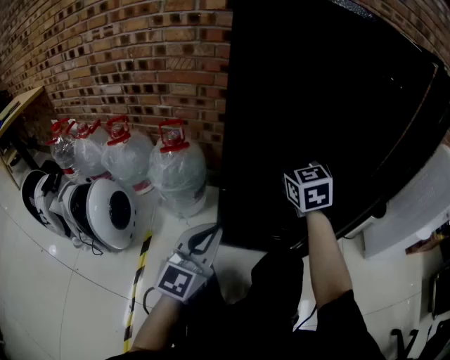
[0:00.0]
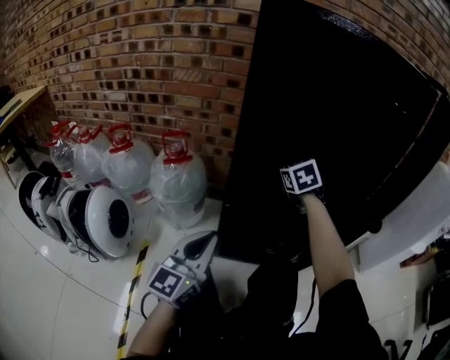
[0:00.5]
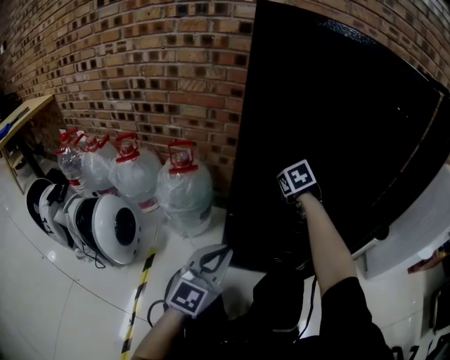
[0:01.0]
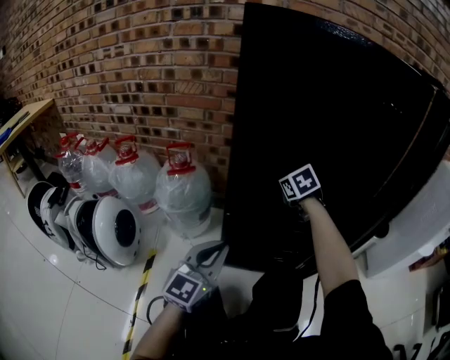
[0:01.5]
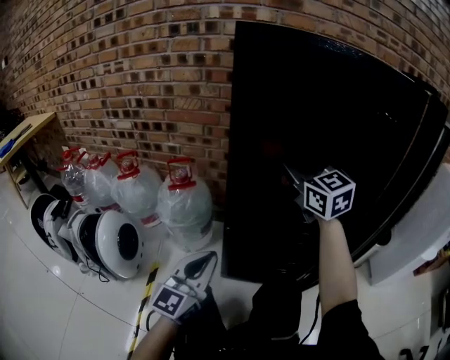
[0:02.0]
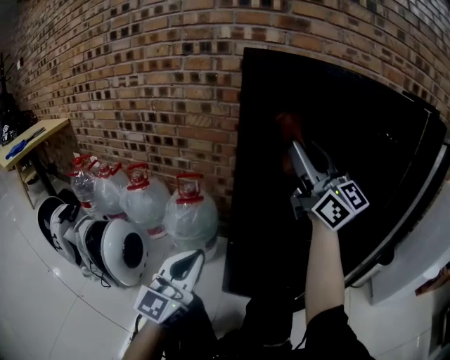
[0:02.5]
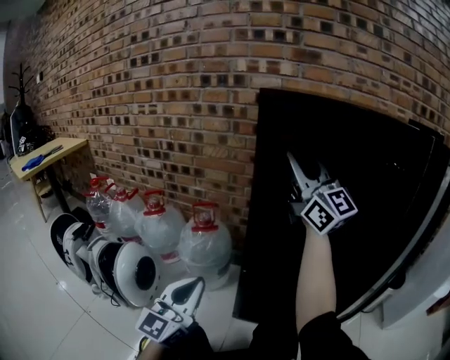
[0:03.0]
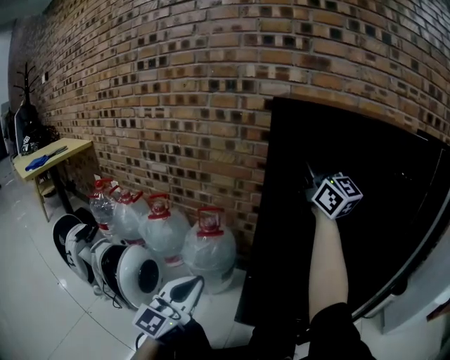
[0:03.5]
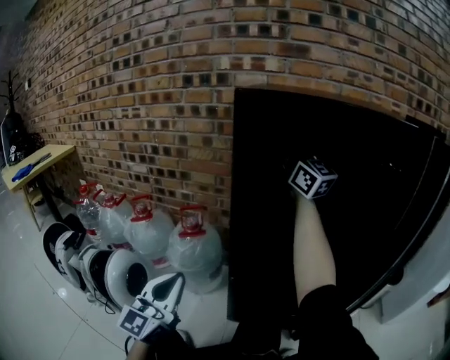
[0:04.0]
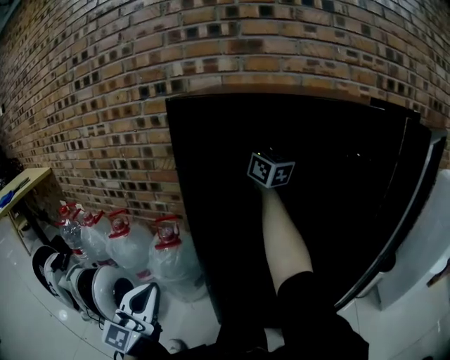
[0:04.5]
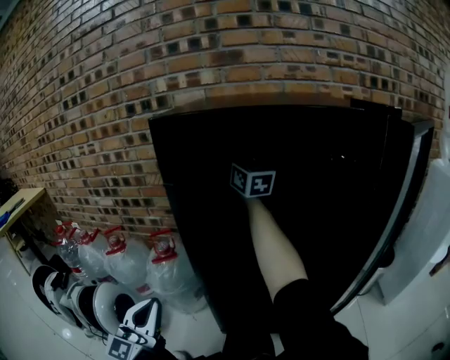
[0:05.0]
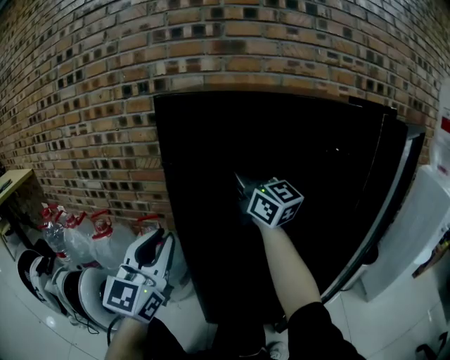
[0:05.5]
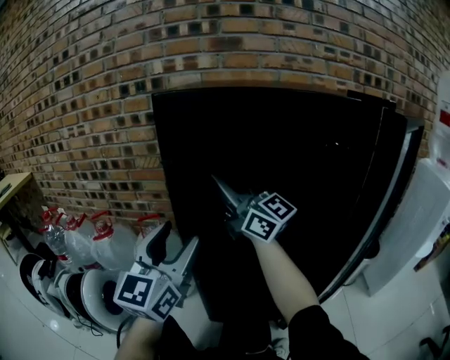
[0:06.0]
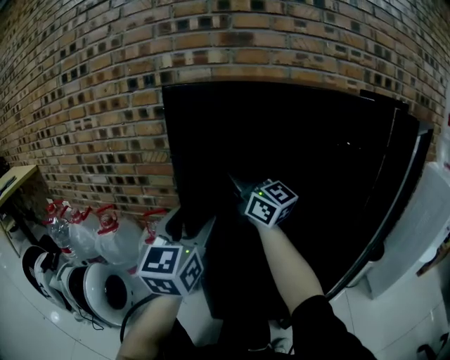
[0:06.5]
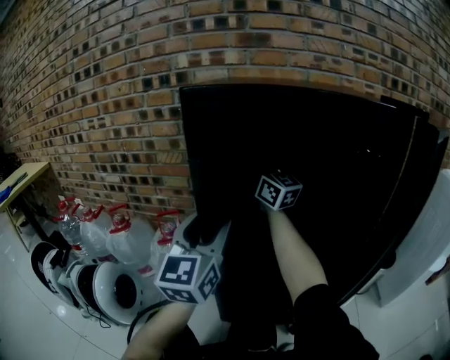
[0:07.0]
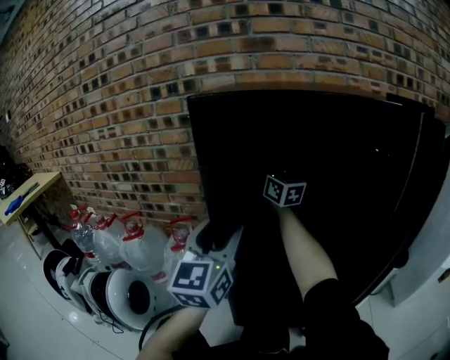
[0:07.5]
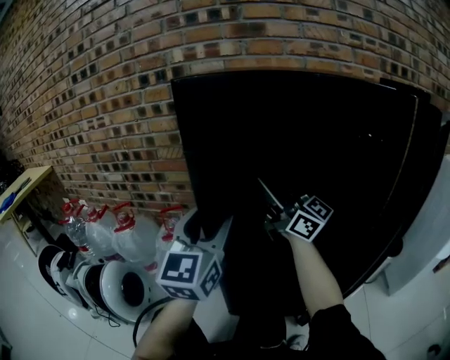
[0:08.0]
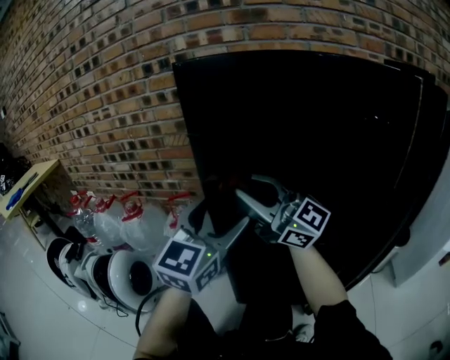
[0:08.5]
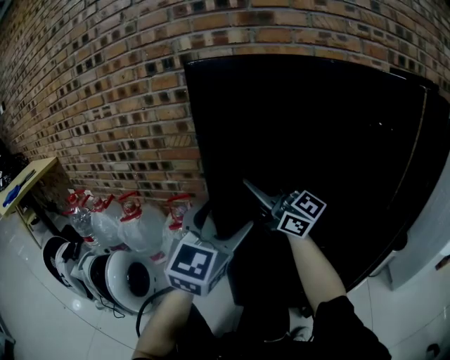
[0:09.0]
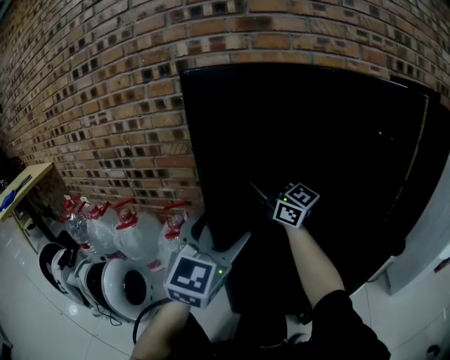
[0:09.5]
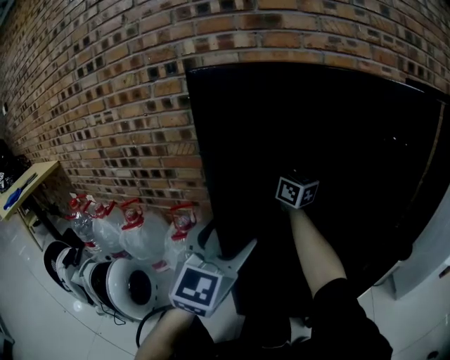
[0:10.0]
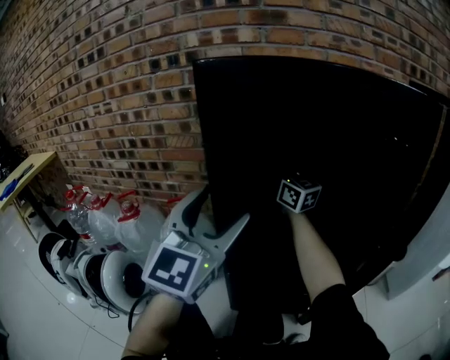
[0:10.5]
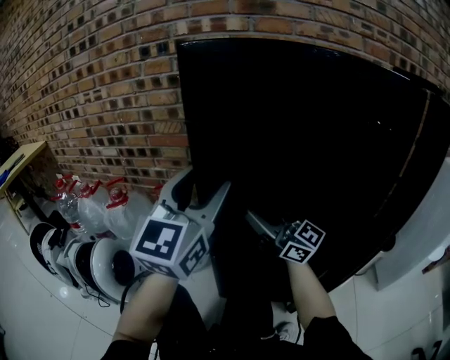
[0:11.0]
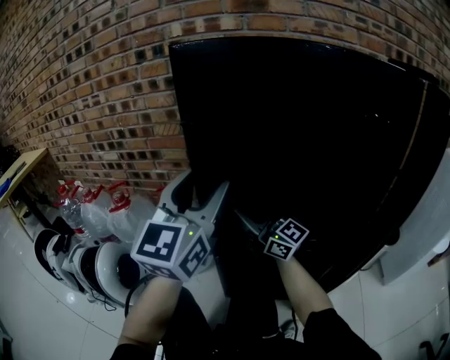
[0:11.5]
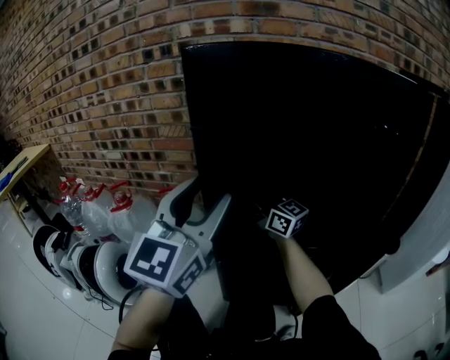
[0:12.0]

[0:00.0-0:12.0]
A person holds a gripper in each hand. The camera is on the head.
0:00.0 to 0:02.0: The right gripper moves upward, approximately 10 cm, swivels roughly 20 degrees, and opens, then closes again.
0:02.0 to 0:04.0: The right gripper is displaced upward and forward by some 20 cm, and angles its fingers upward, by approximately 30 degrees. Meanwhile the left gripper shifts roughly 10 cm to the left and upward.
0:04.0 to 0:06.0: The left gripper moves to the right, upward and forward, some 20 cm, and opens its fingers. Meanwhile the right gripper travels backward and downward by some 10 cm.
0:06.0 to 0:08.0: The right gripper moves approximately 20 cm forward and comes back; the left gripper changes place by roughly 5 cm.
0:08.0 to 0:10.0: The right gripper heads forward, covering some 15 cm.
0:10.0 to 0:12.0: The right gripper travels downward and backward by some 15 cm; the left gripper goes approximately 5 cm upward.

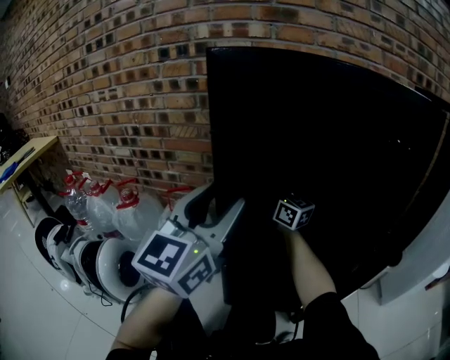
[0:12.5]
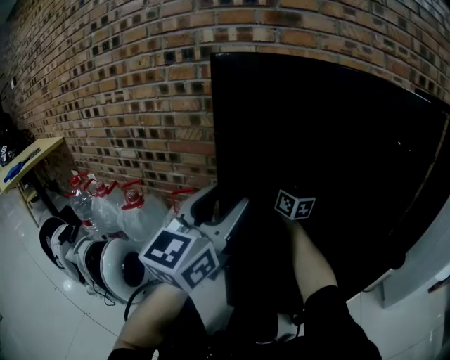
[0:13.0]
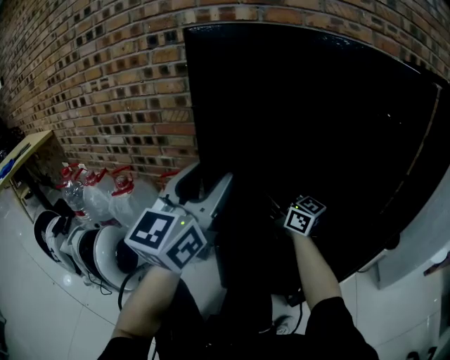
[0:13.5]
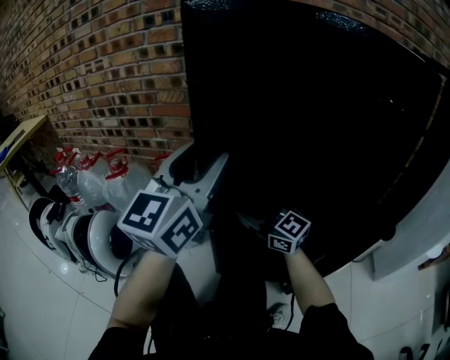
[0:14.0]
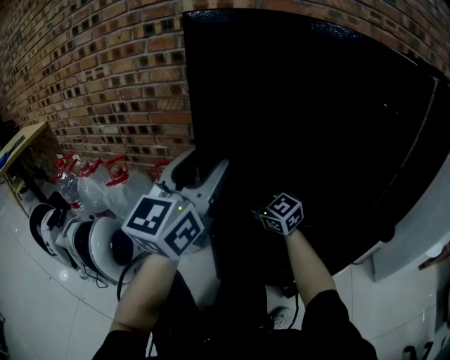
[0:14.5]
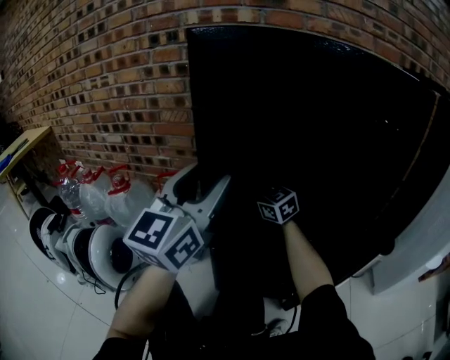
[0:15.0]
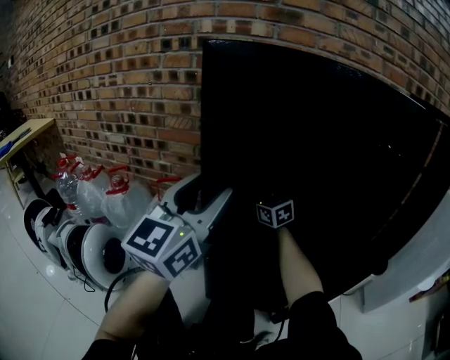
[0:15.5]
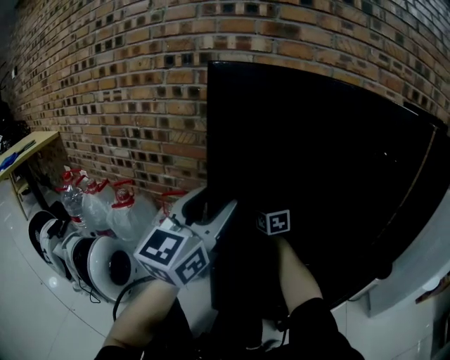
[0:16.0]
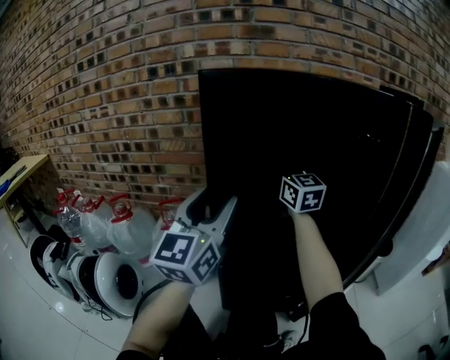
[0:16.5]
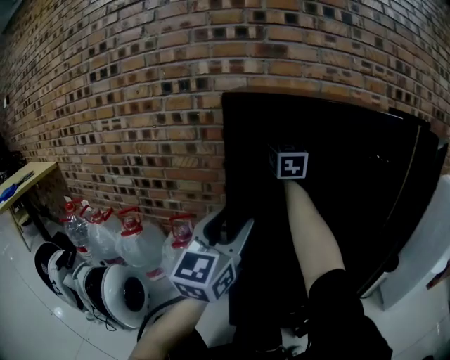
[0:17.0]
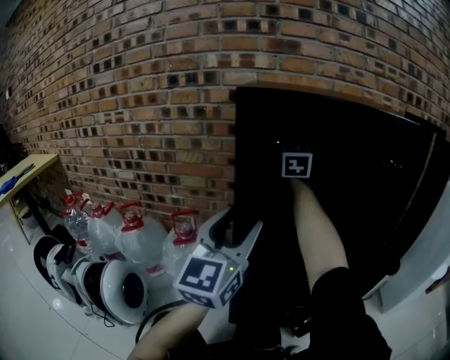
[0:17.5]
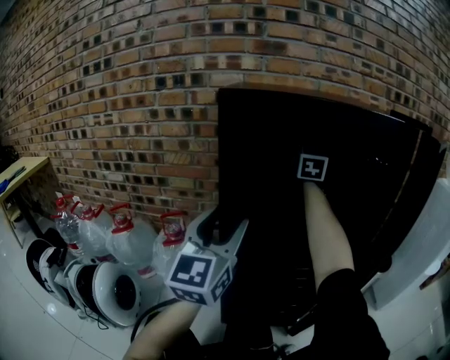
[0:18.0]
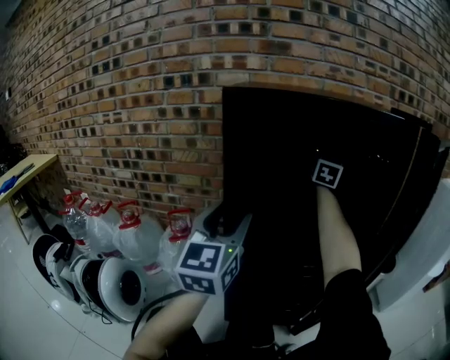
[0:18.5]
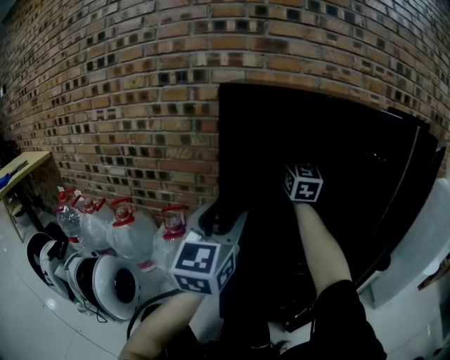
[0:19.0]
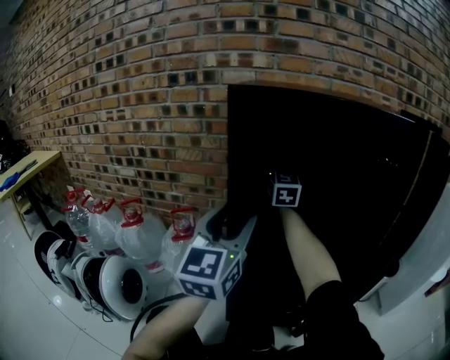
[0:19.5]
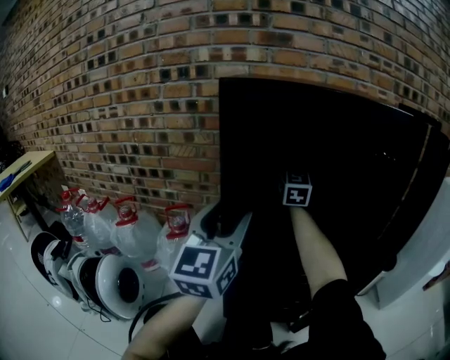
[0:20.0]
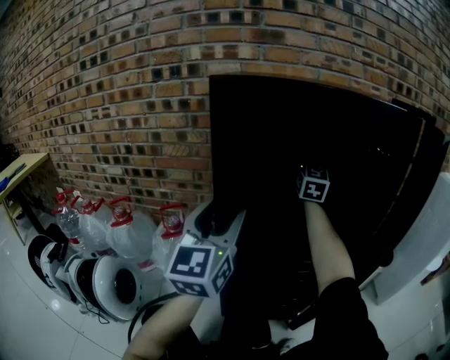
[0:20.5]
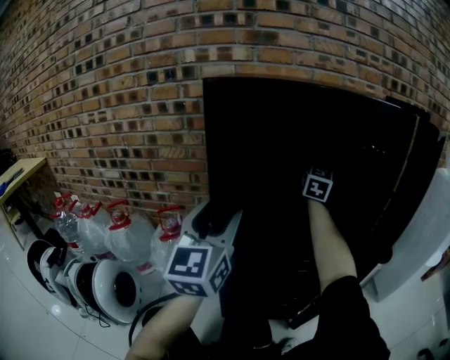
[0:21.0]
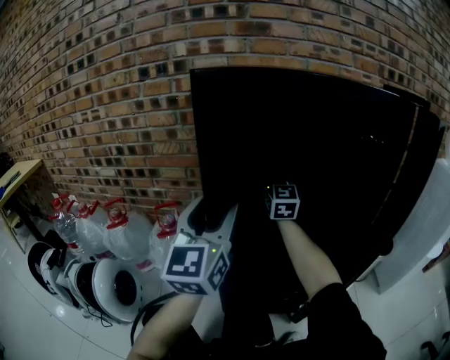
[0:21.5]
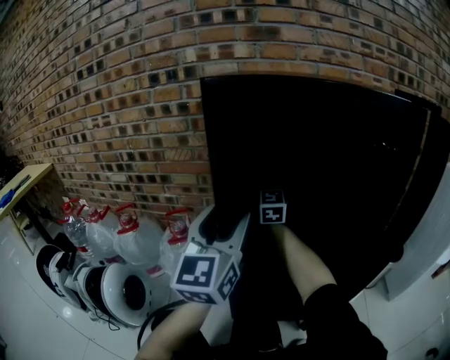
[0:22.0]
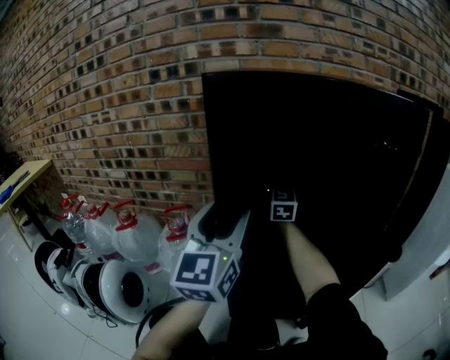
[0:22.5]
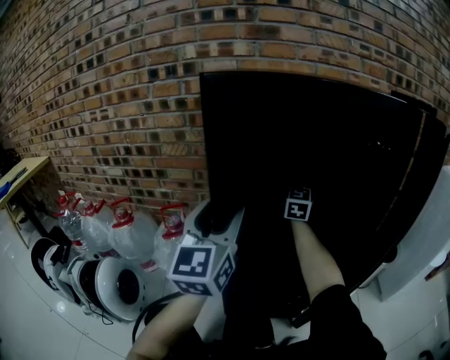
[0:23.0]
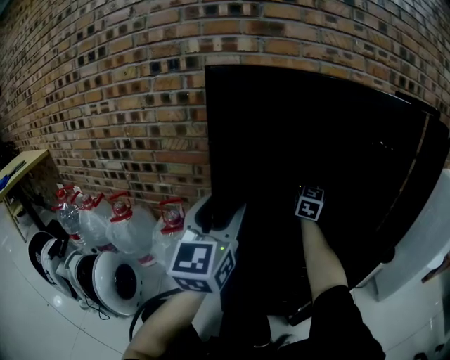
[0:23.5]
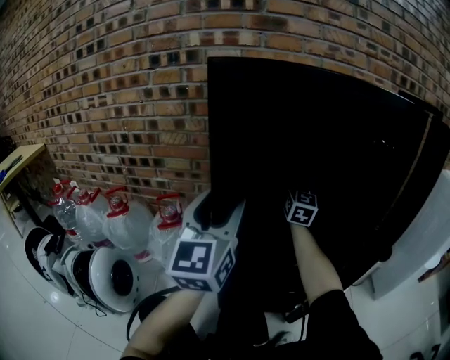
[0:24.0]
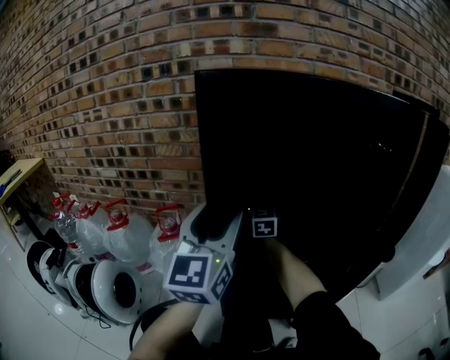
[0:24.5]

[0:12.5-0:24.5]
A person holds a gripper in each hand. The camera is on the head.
0:12.5 to 0:14.5: The right gripper goes forward and backward, roughly 20 cm each way, reversing 2 times, and rotates approximately 30 degrees.
0:14.5 to 0:16.5: The right gripper travels upward and to the right by some 20 cm, and rotates roughly 40 degrees.
0:16.5 to 0:18.5: The right gripper travels to the right, upward and forward by about 20 cm, and changes its angle by approximately 40 degrees.
0:18.5 to 0:20.5: The right gripper travels downward by some 5 cm, and goes to the left and returns, about 20 cm each way.
0:20.5 to 0:22.5: The right gripper moves left and right over about 20 cm, changing direction 2 times.
0:22.5 to 0:24.5: The right gripper travels downward by about 10 cm, and moves about 15 cm to the right and comes back.

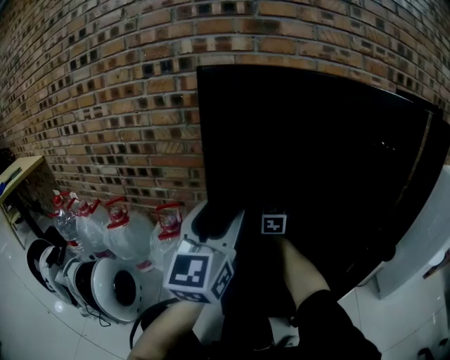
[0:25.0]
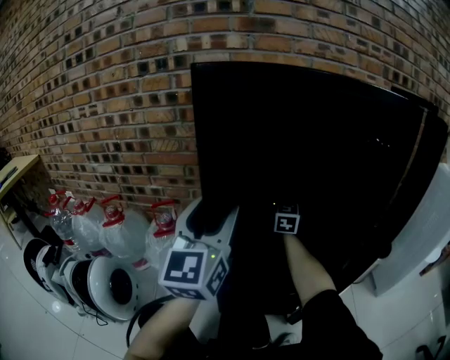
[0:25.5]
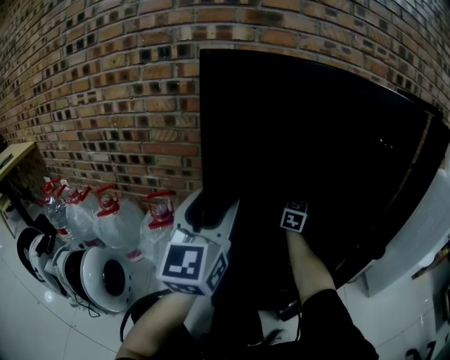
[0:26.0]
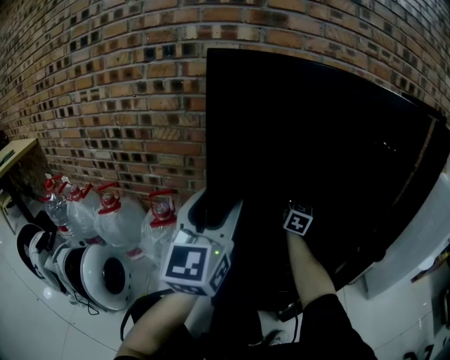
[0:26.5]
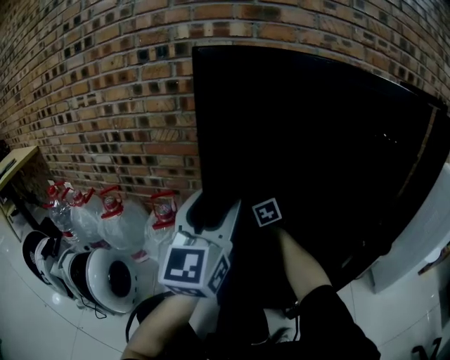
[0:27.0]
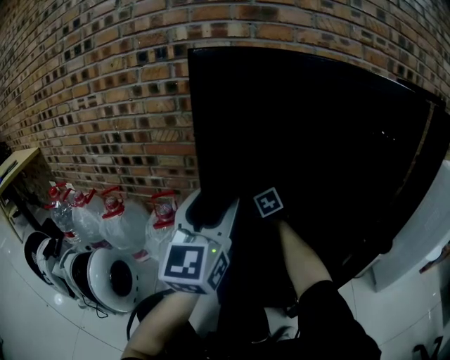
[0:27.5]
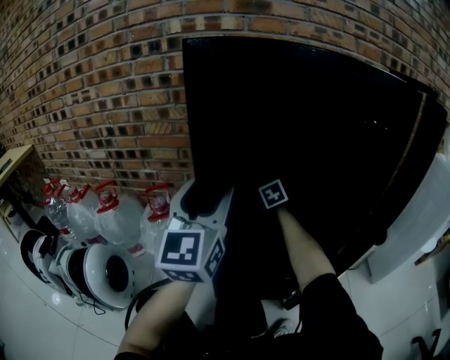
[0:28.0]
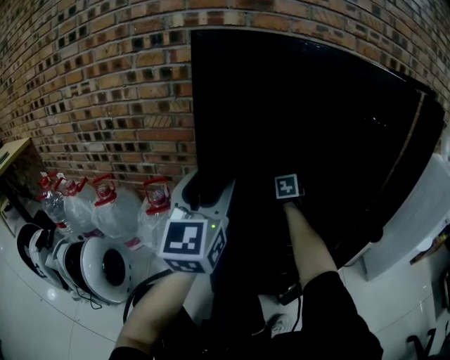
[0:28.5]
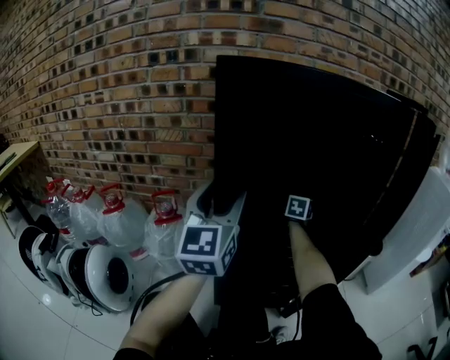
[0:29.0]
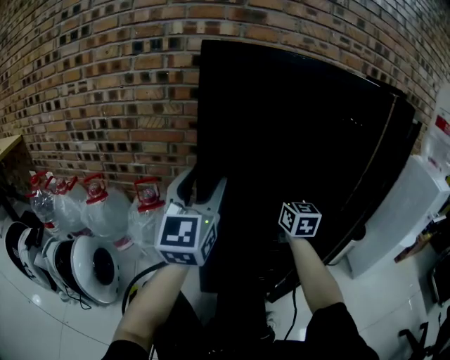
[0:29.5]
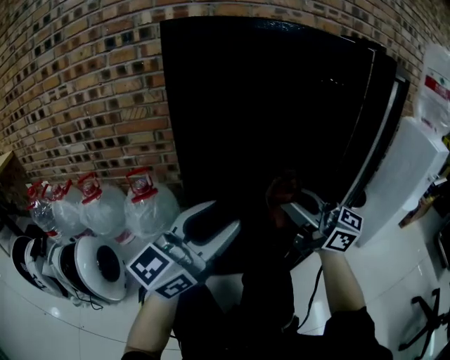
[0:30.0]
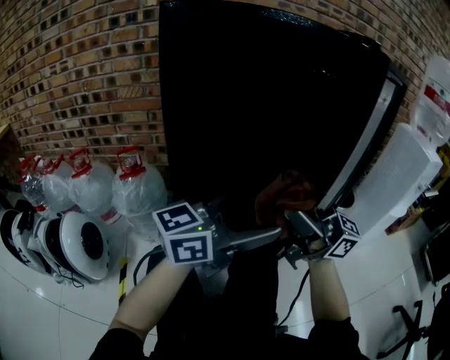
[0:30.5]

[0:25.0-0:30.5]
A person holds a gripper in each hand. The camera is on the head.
0:25.0 to 0:27.0: The right gripper travels downward by some 10 cm, moves about 15 cm to the right and comes back, and turns by some 30 degrees.
0:27.0 to 0:28.5: The right gripper moves to the right, roughly 15 cm, and swivels roughly 30 degrees.
0:28.5 to 0:30.5: The left gripper shifts by some 25 cm, and turns by roughly 70 degrees; the right gripper moves about 50 cm, and angles its fingers upward, by about 60 degrees.
